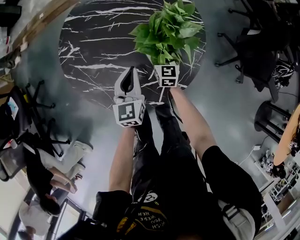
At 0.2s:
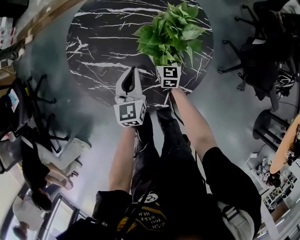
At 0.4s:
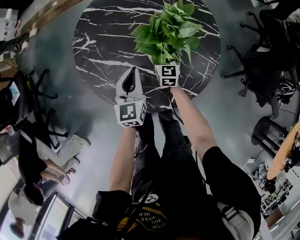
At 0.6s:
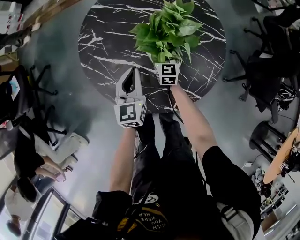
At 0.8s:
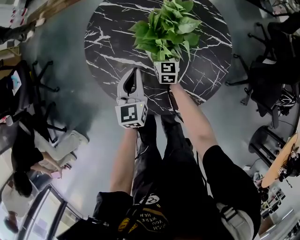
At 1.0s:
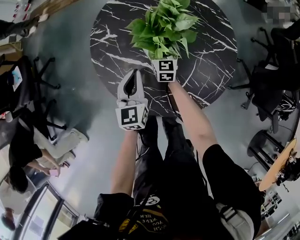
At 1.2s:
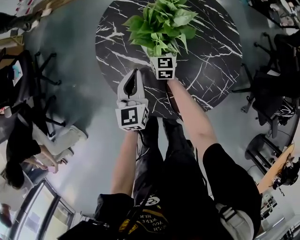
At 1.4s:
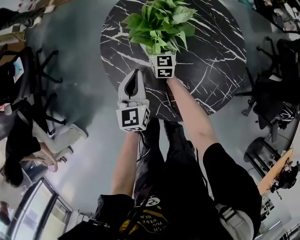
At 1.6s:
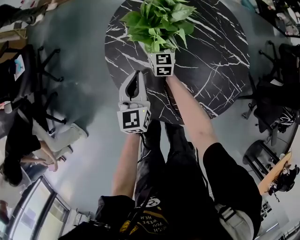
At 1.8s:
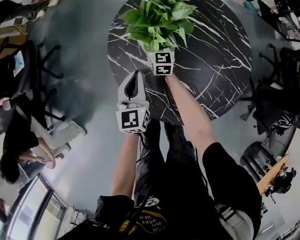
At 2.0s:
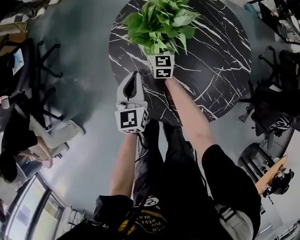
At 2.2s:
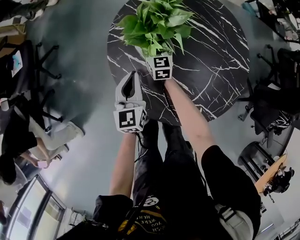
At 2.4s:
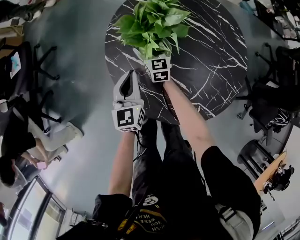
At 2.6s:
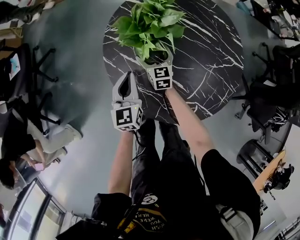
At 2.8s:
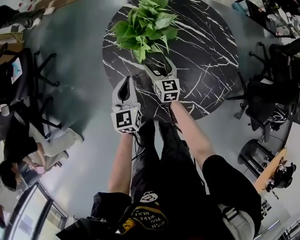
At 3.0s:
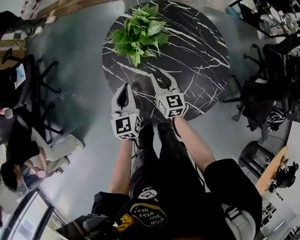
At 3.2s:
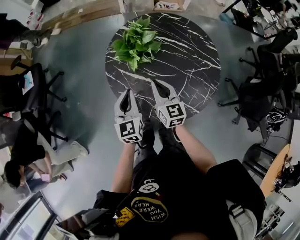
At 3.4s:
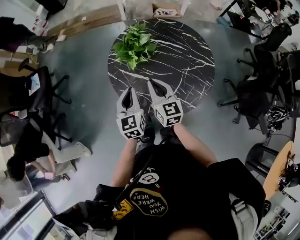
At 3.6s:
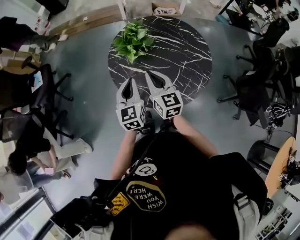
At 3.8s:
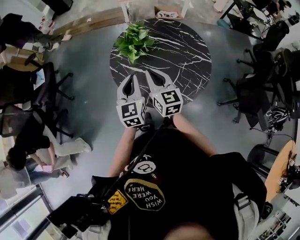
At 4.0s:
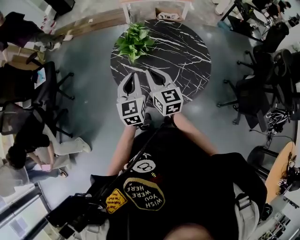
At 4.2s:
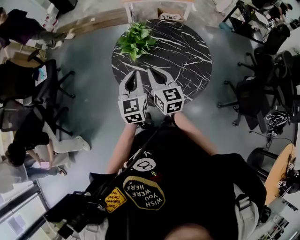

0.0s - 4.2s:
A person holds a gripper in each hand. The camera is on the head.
0.0s - 1.4s: The left gripper shifts about 20 cm to the left. Meanwhile the right gripper shifts approximately 30 cm to the left and forward.
1.4s - 2.8s: The right gripper goes about 10 cm backward.
2.8s - 4.2s: Both grippers move upward and backward, approximately 35 cm. The right gripper closes.

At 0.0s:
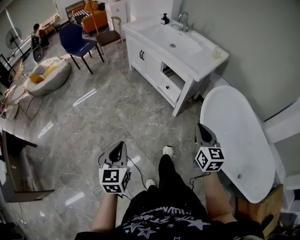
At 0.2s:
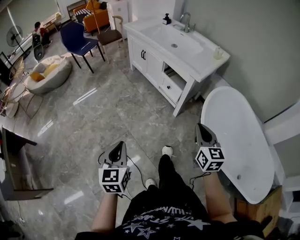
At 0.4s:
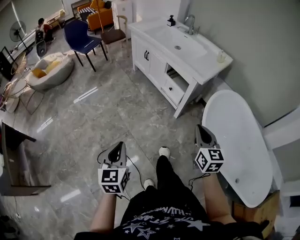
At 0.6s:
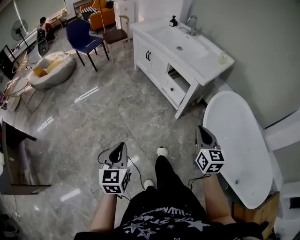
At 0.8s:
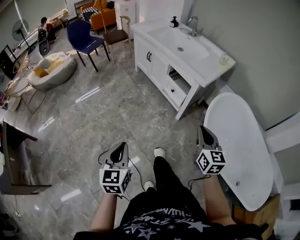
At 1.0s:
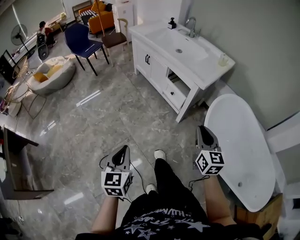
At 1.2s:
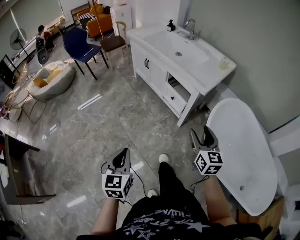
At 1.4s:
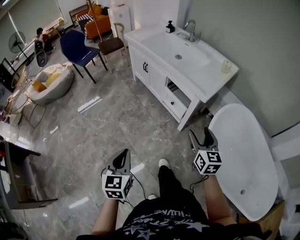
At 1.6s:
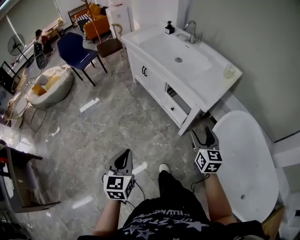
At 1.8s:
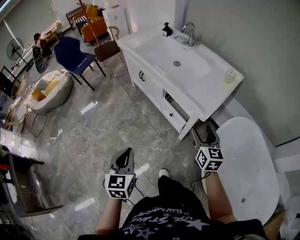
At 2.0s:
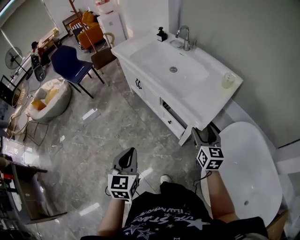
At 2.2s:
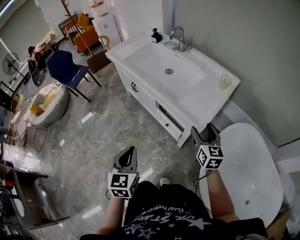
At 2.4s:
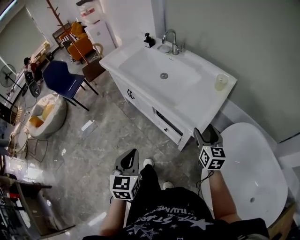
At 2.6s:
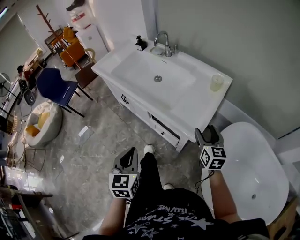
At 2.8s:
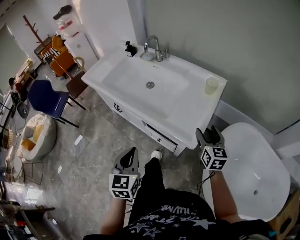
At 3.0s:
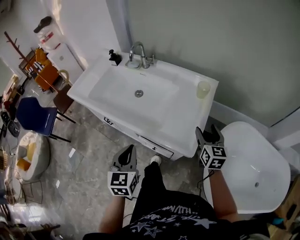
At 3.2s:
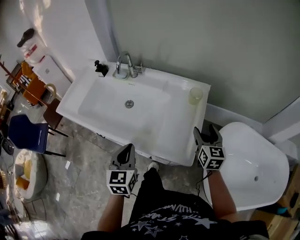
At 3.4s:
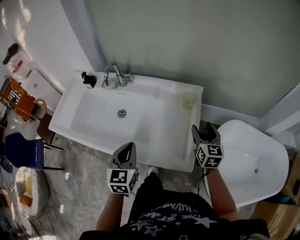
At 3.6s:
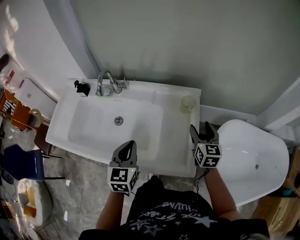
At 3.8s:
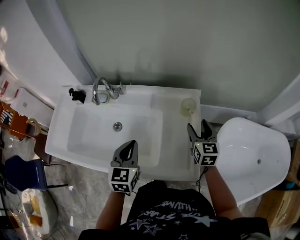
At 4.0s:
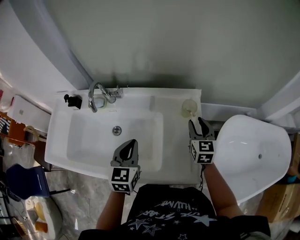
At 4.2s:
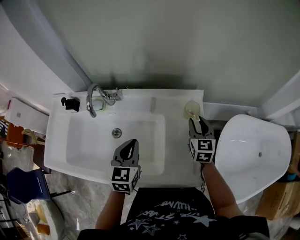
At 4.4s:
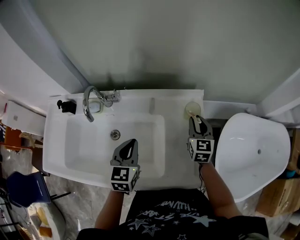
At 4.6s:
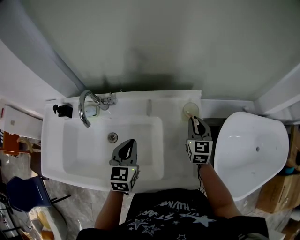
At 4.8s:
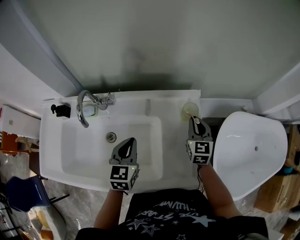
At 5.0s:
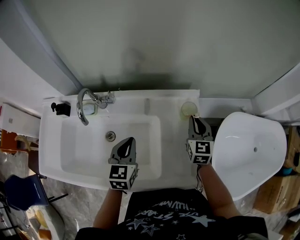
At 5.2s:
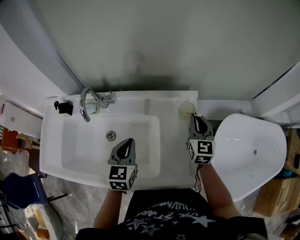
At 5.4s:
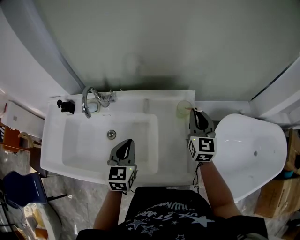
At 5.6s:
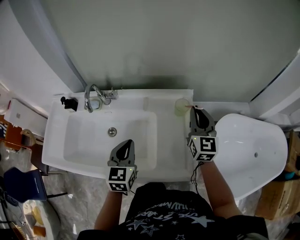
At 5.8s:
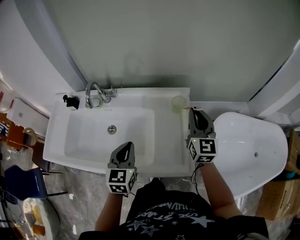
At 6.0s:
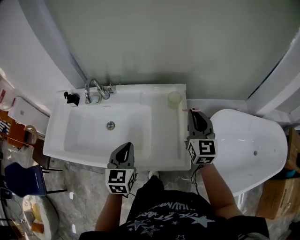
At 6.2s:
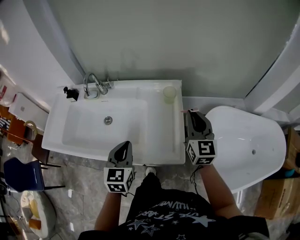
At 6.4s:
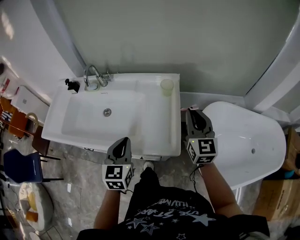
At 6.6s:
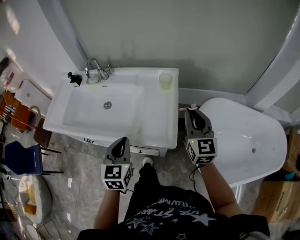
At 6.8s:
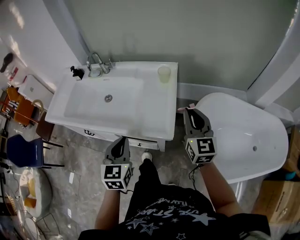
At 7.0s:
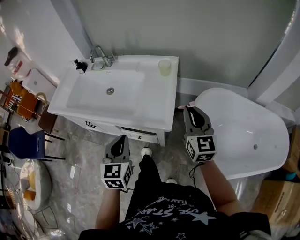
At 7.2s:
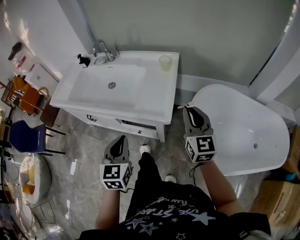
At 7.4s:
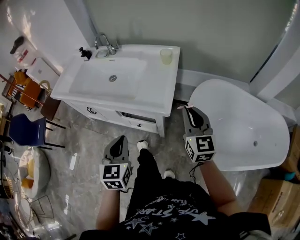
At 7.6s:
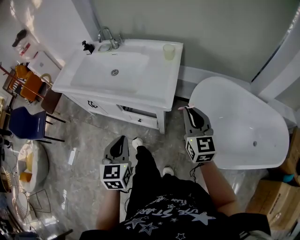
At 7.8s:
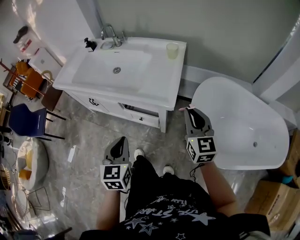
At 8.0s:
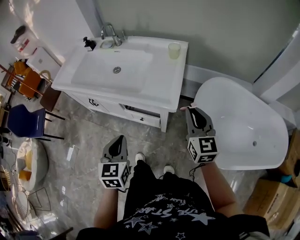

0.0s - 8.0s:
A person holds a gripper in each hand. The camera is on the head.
0.0s - 1.6s: Both grippers move forward, about 20 cm. The right gripper opens.
1.6s - 3.2s: The left gripper shifts by approximately 50 cm, and changes its angle by roughly 30 degrees, while the right gripper ends up about 40 cm from where it was, and swivels roughly 30 degrees.
3.2s - 4.8s: The left gripper moves forward, about 30 cm, and rotates about 30 degrees; the right gripper travels forward by about 20 cm, changes its angle by about 20 degrees, and closes up.
4.8s - 6.4s: The left gripper goes approximately 25 cm backward and to the right. The right gripper goes roughly 25 cm backward, upward and to the right, and turns by some 20 degrees.
6.4s - 8.0s: Both grippers move backward, roughly 20 cm.

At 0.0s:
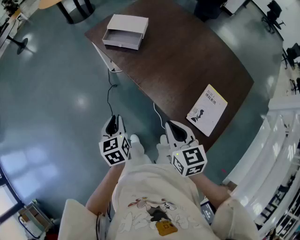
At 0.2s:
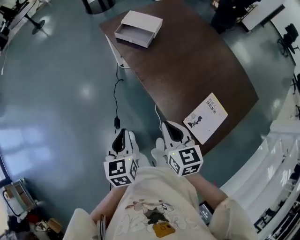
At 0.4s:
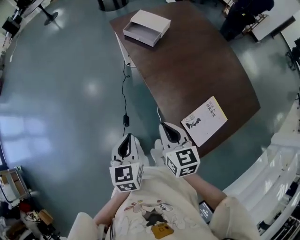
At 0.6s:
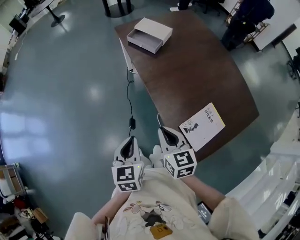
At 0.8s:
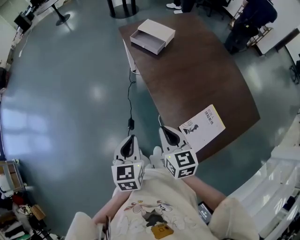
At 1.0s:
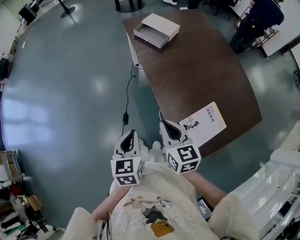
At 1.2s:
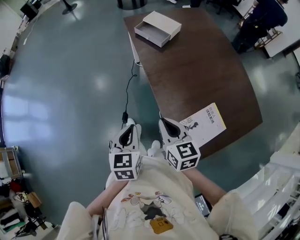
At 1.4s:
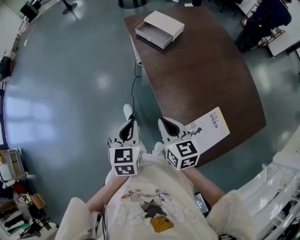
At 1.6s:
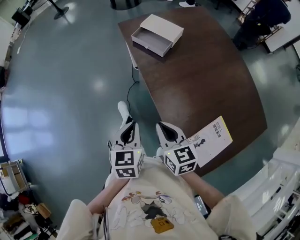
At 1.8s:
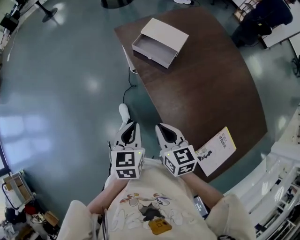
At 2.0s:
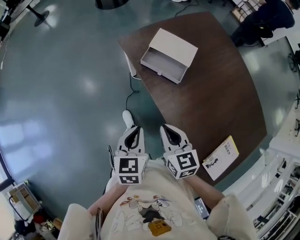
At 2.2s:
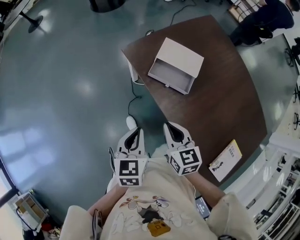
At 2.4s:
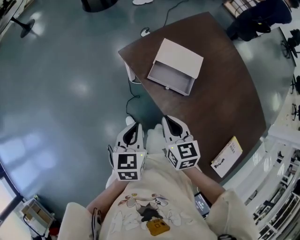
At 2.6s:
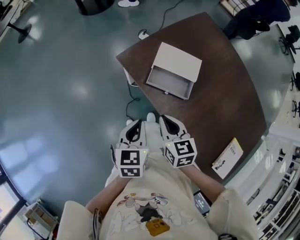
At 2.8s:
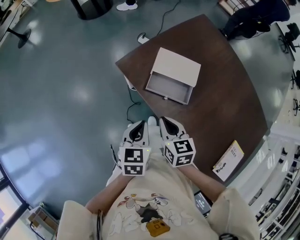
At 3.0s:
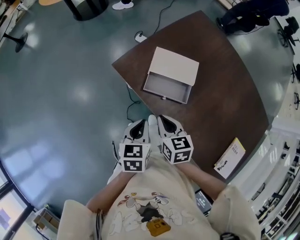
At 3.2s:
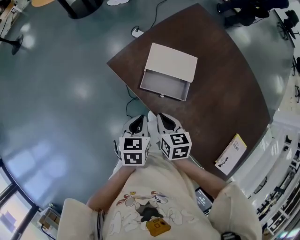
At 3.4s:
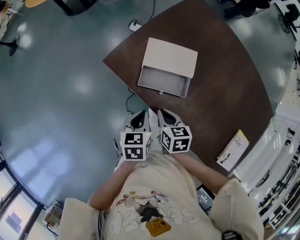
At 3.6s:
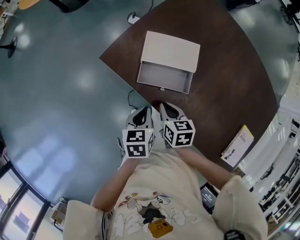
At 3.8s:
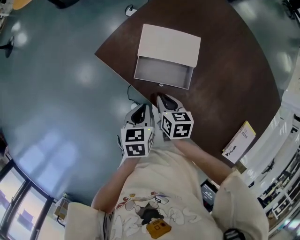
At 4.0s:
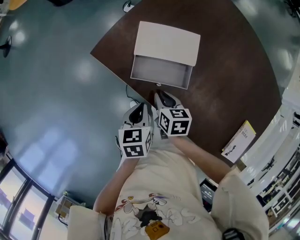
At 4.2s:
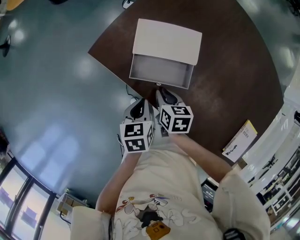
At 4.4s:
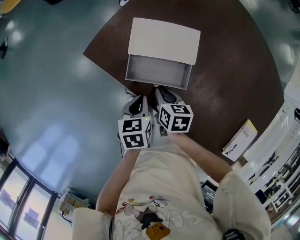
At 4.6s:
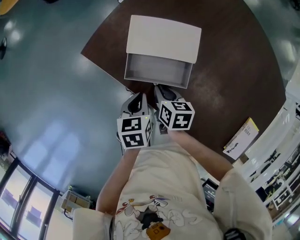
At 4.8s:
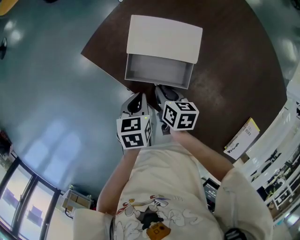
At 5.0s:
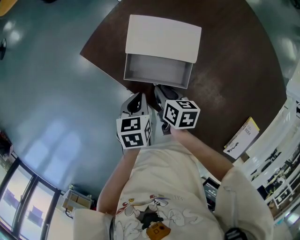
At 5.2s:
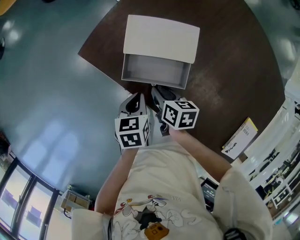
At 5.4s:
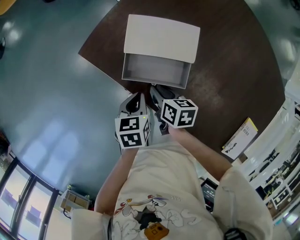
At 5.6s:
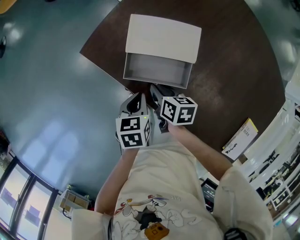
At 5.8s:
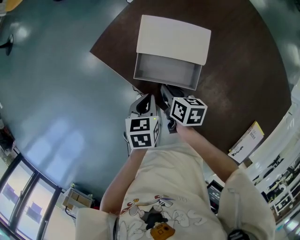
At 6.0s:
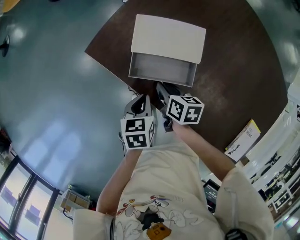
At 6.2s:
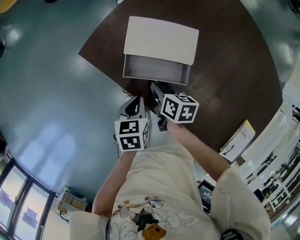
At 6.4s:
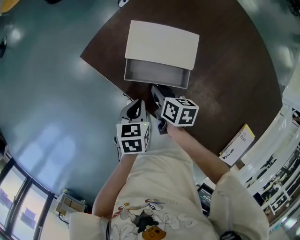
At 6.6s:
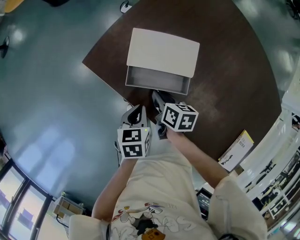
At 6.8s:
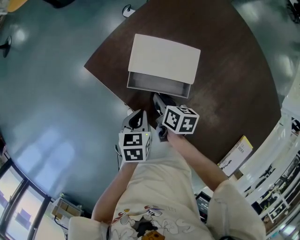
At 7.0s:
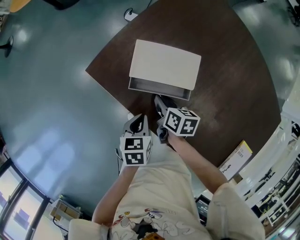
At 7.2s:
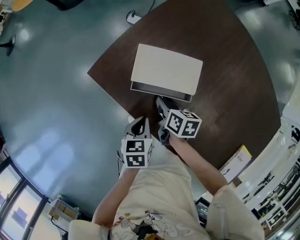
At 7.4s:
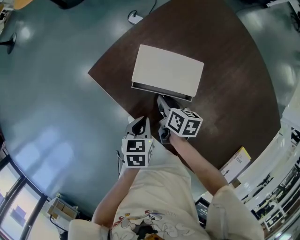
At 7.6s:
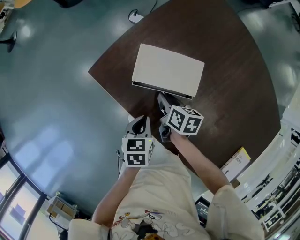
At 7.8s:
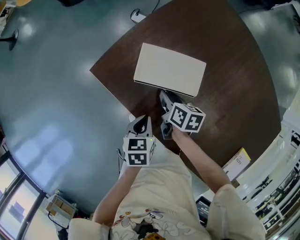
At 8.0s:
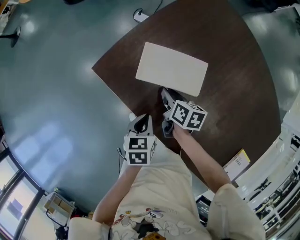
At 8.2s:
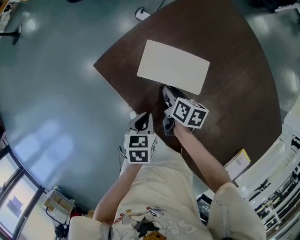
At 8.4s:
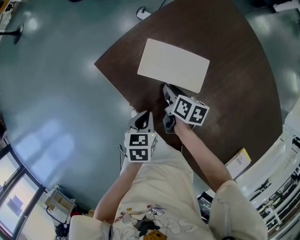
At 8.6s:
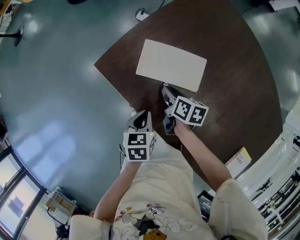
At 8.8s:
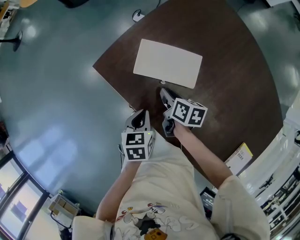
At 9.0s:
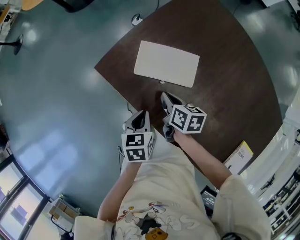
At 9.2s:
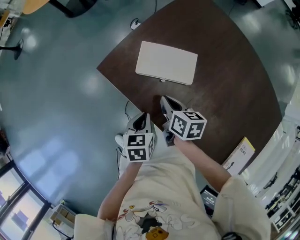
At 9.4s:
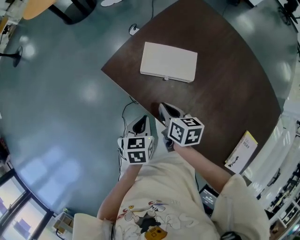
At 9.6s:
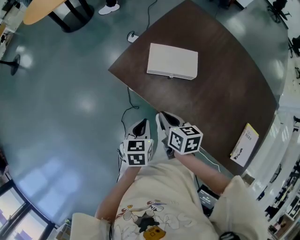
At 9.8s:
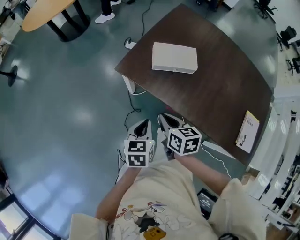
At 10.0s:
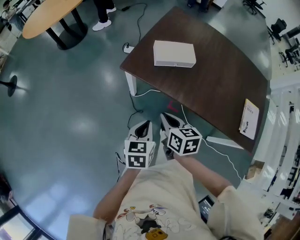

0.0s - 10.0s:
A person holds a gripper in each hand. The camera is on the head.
0.0s - 1.4s: The right gripper rotates about 20 degrees; the left gripper goes about 15 cm to the right, backward and upward.
1.4s - 2.8s: The pair of grippers is taken approximately 50 cm. The left gripper swivels approximately 30 degrees. The right gripper swivels roughly 30 degrees.
2.8s - 4.2s: The grippers both shift downward, to the right and forward by some 15 cm. The right gripper rotates about 30 degrees.
4.2s - 5.8s: The grippers stay close to where they were, moving slightly.
5.8s - 7.2s: The right gripper heads forward, covering about 5 cm.
7.2s - 8.6s: There are only small adjustments of the grippers.
8.6s - 10.0s: The two grippers go roughly 35 cm to the left, backward and upward. The left gripper turns by some 30 degrees; the right gripper rotates about 20 degrees.

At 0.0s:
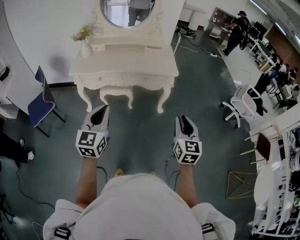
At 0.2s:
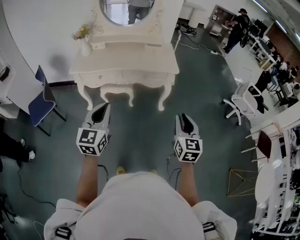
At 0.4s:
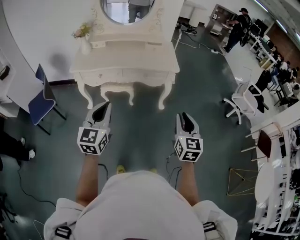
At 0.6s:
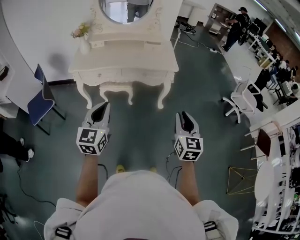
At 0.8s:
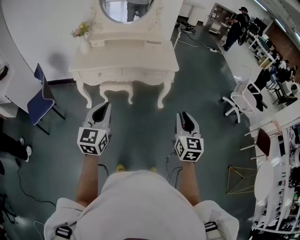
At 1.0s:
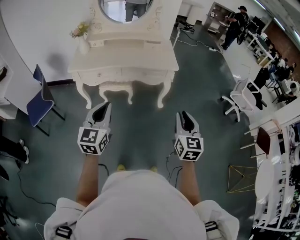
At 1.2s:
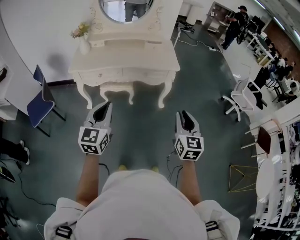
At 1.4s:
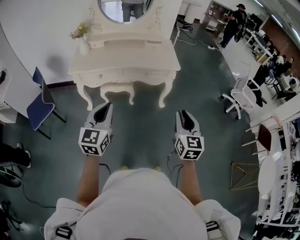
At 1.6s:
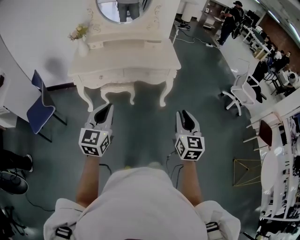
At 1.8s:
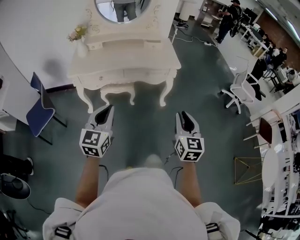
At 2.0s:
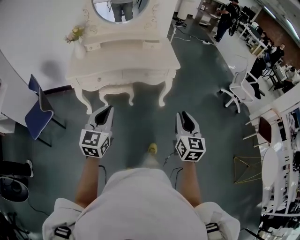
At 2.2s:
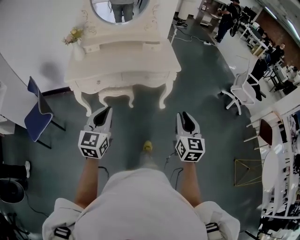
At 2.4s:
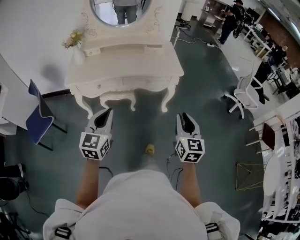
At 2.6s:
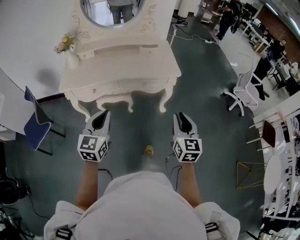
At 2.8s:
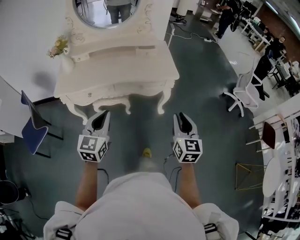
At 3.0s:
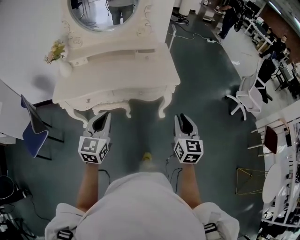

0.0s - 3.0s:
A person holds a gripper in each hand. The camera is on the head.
0.0s - 1.6s: Both grippers travel together to the left, roughly 5 cm.
1.6s - 3.0s: Both grippers travel together forward, about 30 cm.
